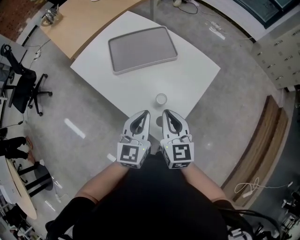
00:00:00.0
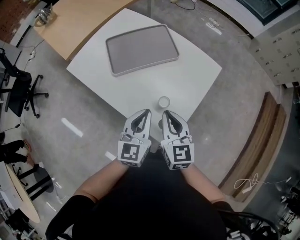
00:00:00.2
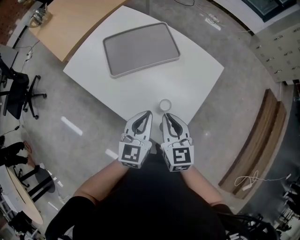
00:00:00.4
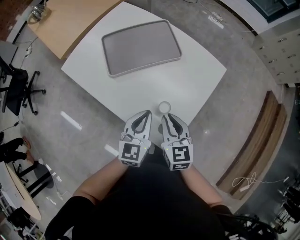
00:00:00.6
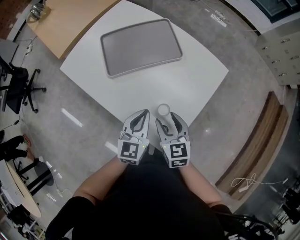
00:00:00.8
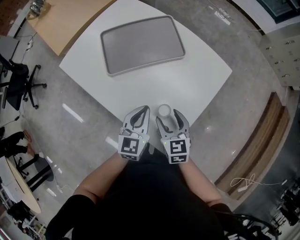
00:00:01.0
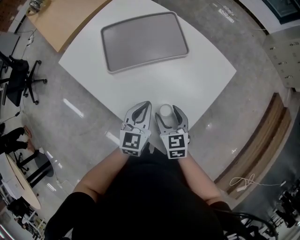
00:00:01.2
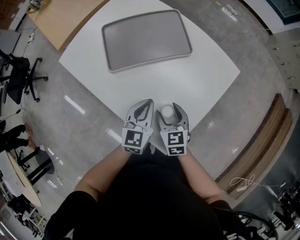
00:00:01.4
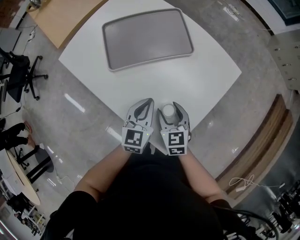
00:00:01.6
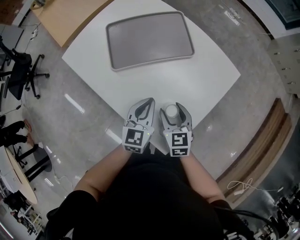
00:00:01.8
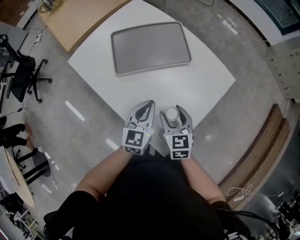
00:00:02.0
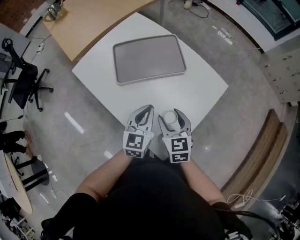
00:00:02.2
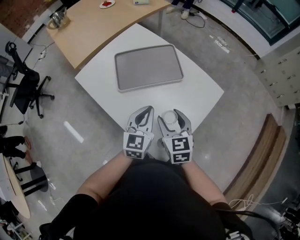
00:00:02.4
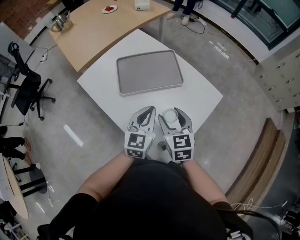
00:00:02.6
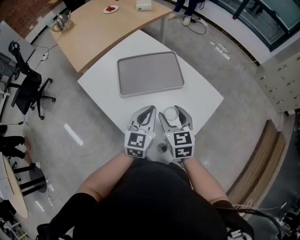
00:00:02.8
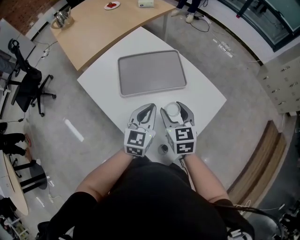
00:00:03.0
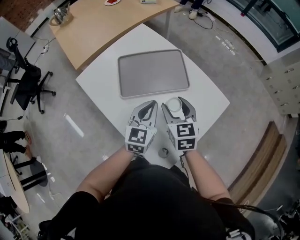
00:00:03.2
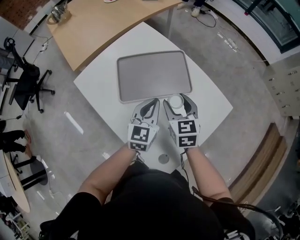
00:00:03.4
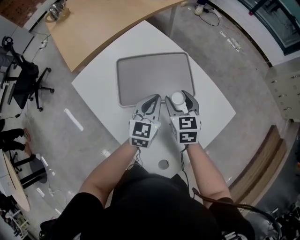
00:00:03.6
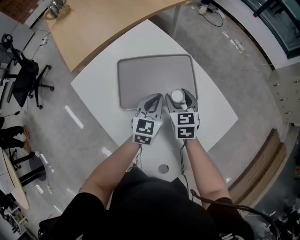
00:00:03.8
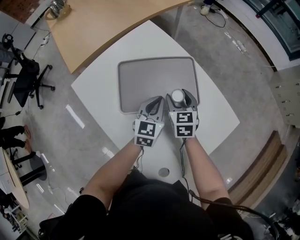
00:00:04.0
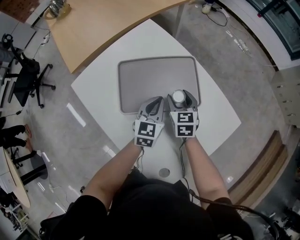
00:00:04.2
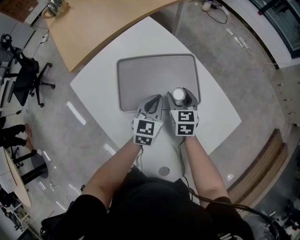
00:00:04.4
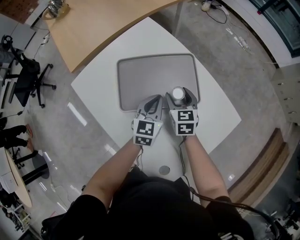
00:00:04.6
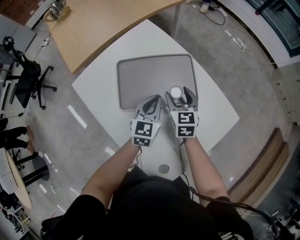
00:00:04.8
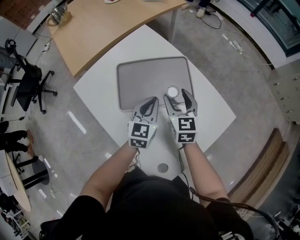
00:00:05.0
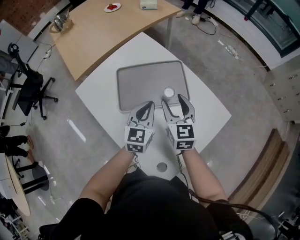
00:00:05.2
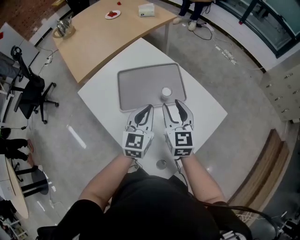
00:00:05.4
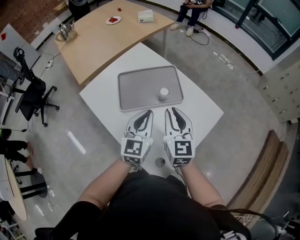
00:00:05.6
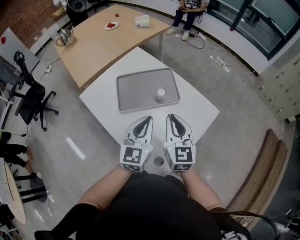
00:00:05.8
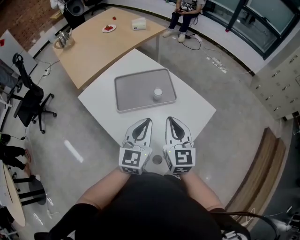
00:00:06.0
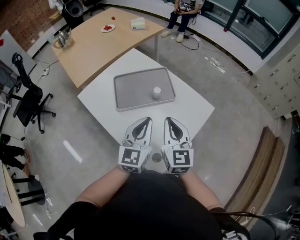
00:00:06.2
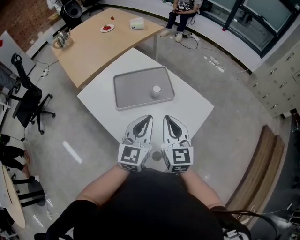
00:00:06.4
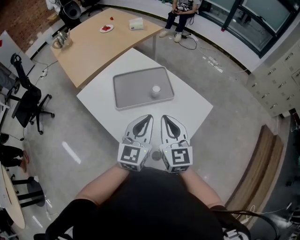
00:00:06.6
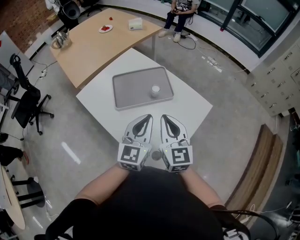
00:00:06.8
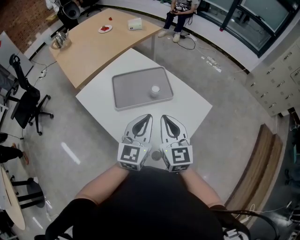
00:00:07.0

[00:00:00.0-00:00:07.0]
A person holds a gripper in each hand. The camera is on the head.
00:00:00.0 to 00:00:01.4: Both grippers move downward and forward, roughly 20 cm. The right gripper swivels about 20 degrees, and opens its fingers.
00:00:01.4 to 00:00:02.8: Both grippers move upward, roughly 15 cm.
00:00:02.8 to 00:00:04.2: The grippers both shift forward and downward by roughly 25 cm.
00:00:04.2 to 00:00:05.6: The grippers both shift upward and backward by about 25 cm. The right gripper turns by roughly 20 degrees, and closes up.
00:00:05.6 to 00:00:07.0: The left gripper shifts roughly 10 cm backward and upward, while the right gripper goes about 10 cm backward.

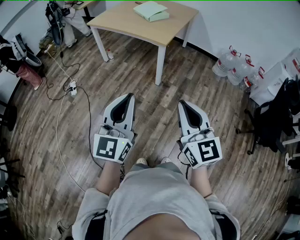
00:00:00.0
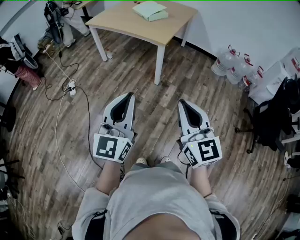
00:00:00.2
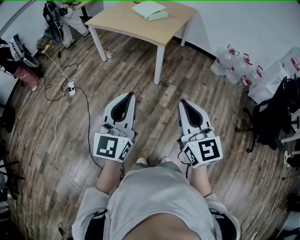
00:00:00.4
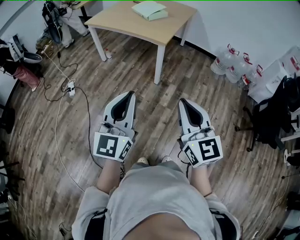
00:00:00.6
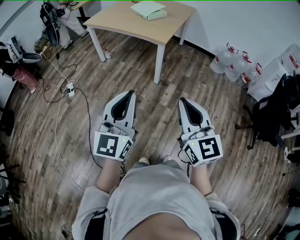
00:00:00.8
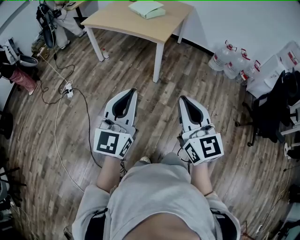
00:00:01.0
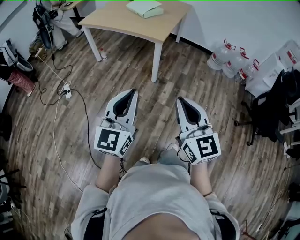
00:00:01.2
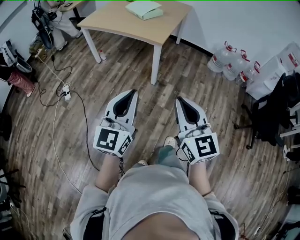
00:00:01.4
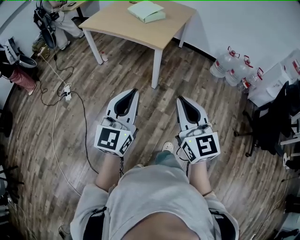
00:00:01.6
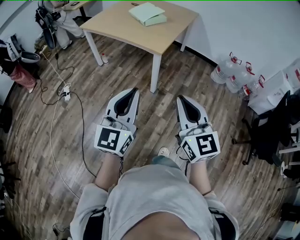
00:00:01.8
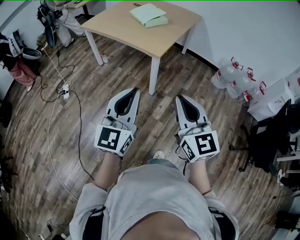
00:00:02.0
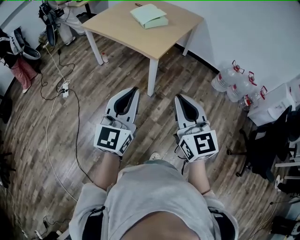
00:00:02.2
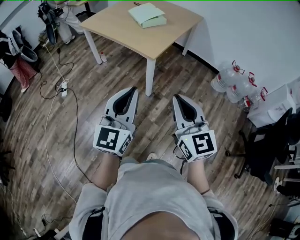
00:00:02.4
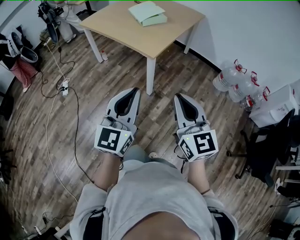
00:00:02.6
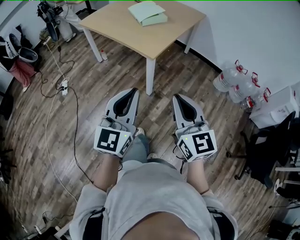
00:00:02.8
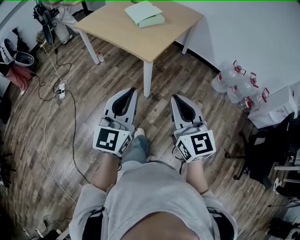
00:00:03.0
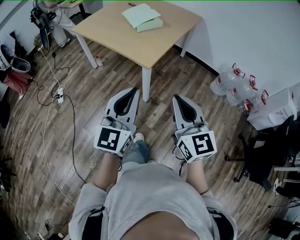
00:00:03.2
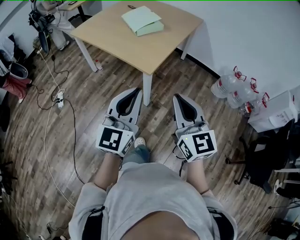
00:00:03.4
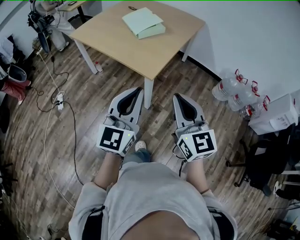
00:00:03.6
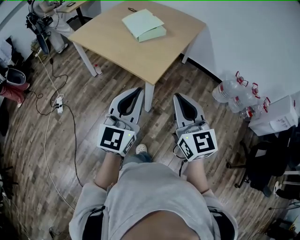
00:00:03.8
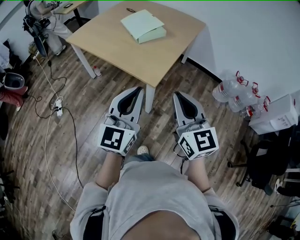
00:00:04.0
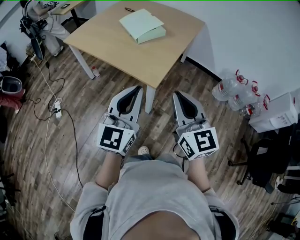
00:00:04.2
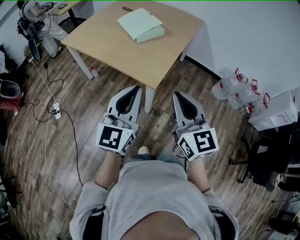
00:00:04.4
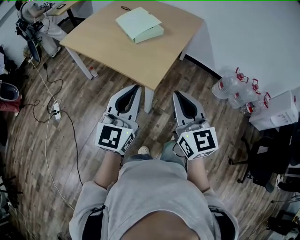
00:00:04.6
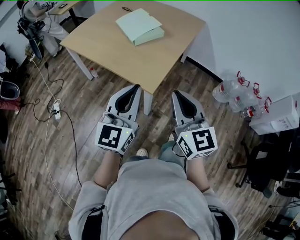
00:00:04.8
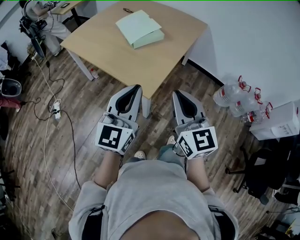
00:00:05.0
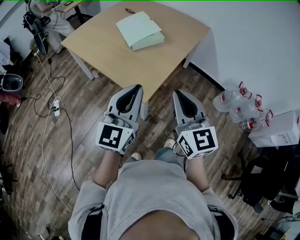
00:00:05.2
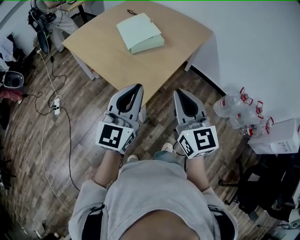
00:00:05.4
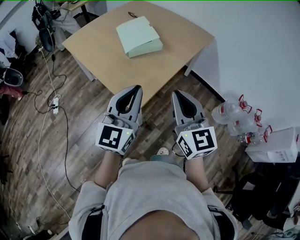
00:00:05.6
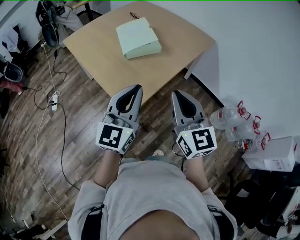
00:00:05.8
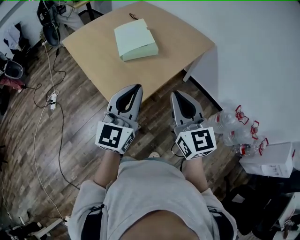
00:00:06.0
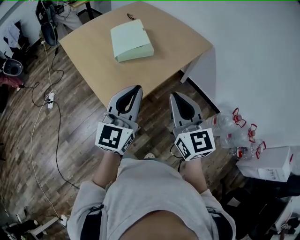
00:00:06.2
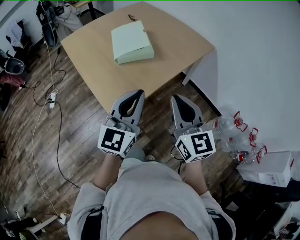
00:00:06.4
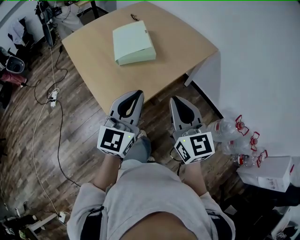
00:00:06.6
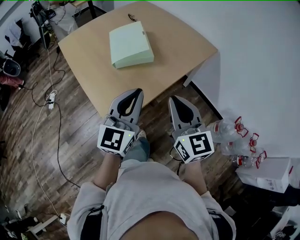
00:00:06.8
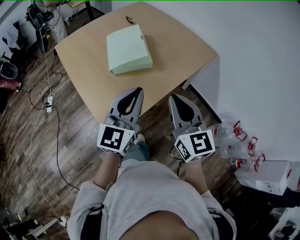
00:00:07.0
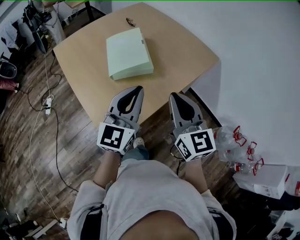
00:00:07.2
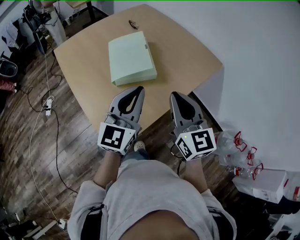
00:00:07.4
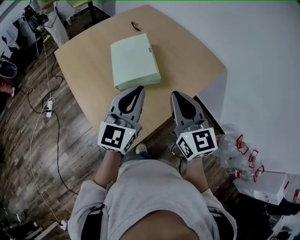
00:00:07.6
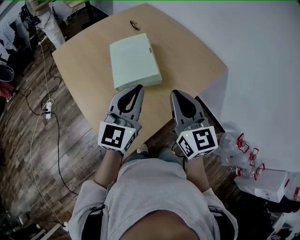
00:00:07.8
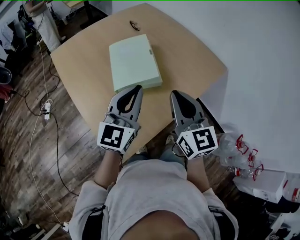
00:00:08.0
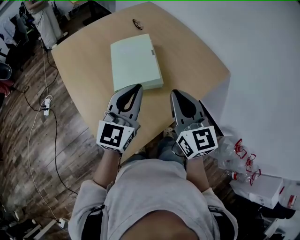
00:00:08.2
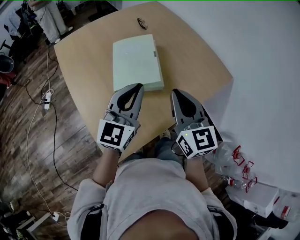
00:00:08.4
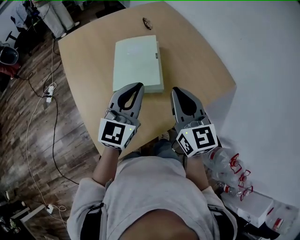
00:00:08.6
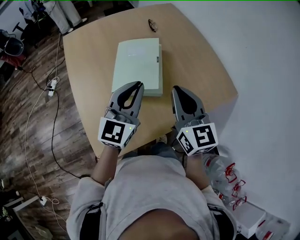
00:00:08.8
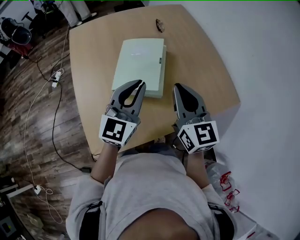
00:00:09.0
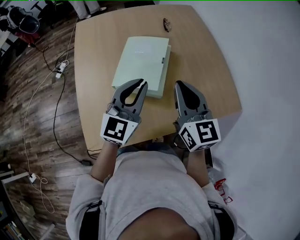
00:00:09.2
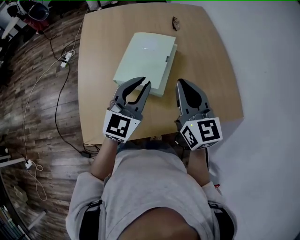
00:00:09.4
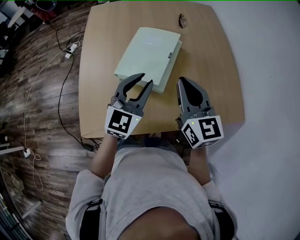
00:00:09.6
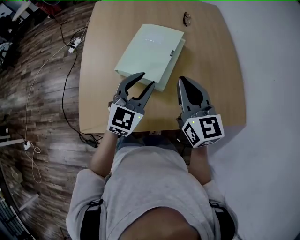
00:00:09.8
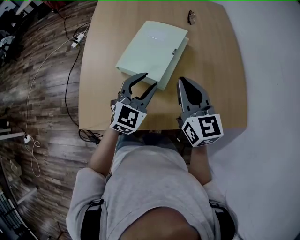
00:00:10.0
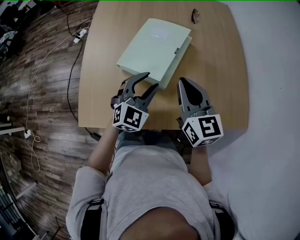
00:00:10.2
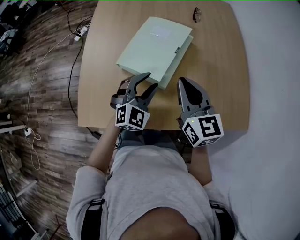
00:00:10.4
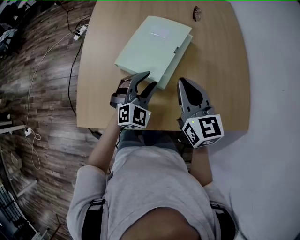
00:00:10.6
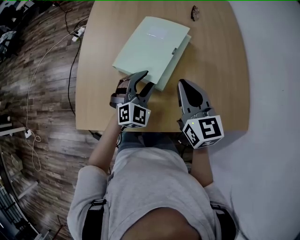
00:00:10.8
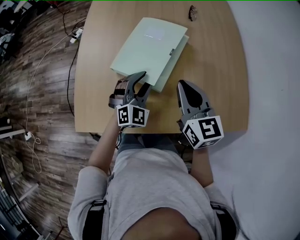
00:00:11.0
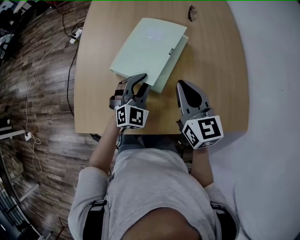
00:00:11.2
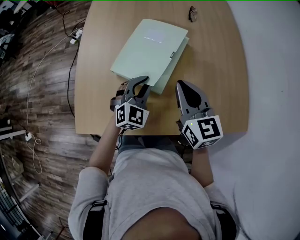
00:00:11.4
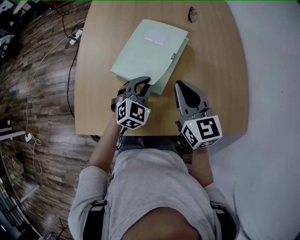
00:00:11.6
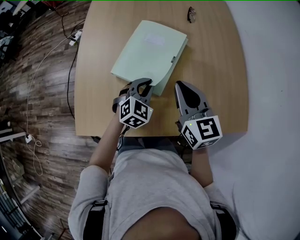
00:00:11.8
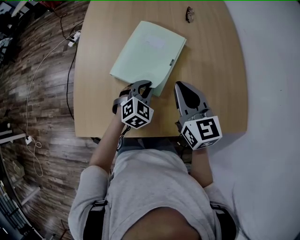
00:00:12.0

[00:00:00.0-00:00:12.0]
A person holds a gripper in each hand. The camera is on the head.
00:00:00.0 to 00:00:01.6: The grippers both shift forward by some 10 cm.
00:00:01.6 to 00:00:03.0: Both grippers move forward and to the right, about 25 cm.
00:00:03.0 to 00:00:04.4: The two grippers go about 20 cm forward.
00:00:04.4 to 00:00:06.0: Both grippers move forward and to the right, approximately 30 cm.
00:00:06.0 to 00:00:07.6: Both grippers move forward, roughly 25 cm.
00:00:07.6 to 00:00:09.0: The grippers both shift forward by approximately 15 cm.
00:00:09.0 to 00:00:10.4: The right gripper is displaced downward and forward by about 10 cm, and changes its angle by some 20 degrees. Meanwhile the left gripper moves downward, about 15 cm, turns by approximately 40 degrees, and opens its fingers.
00:00:10.4 to 00:00:12.0: The left gripper shifts about 5 cm downward, and closes its fingers.

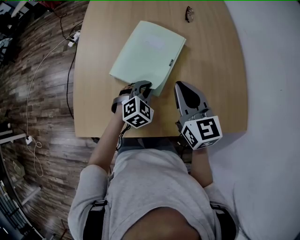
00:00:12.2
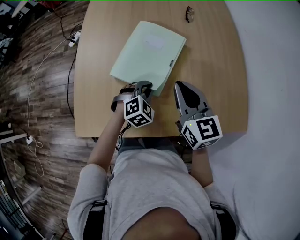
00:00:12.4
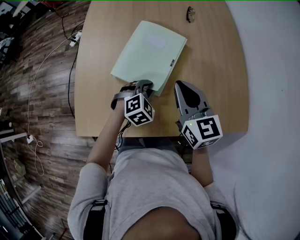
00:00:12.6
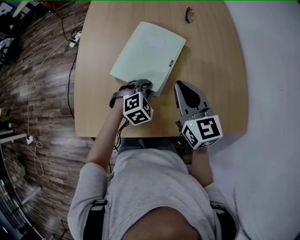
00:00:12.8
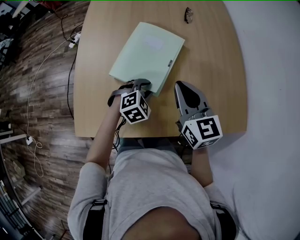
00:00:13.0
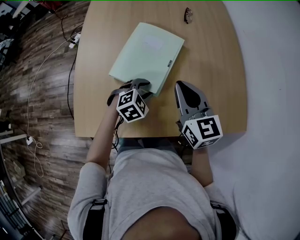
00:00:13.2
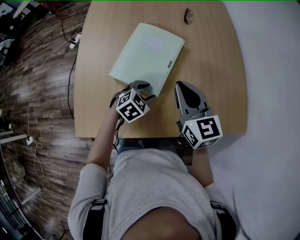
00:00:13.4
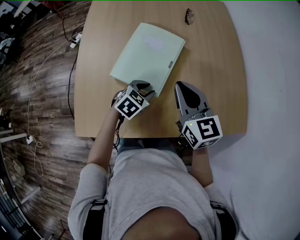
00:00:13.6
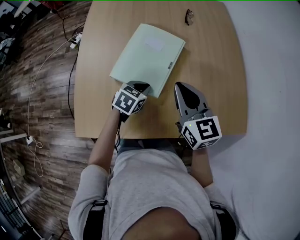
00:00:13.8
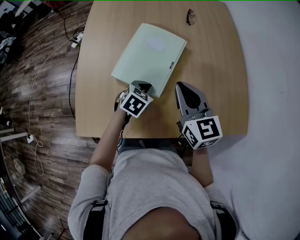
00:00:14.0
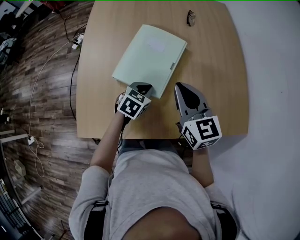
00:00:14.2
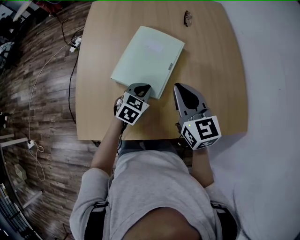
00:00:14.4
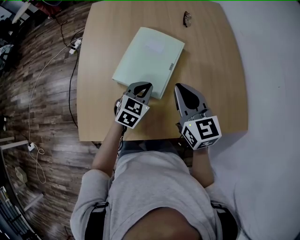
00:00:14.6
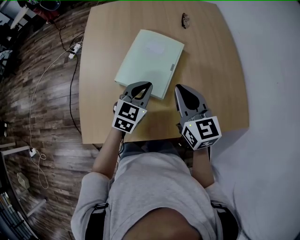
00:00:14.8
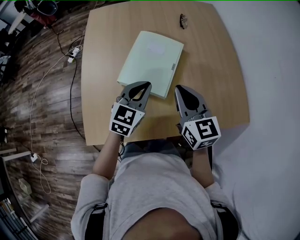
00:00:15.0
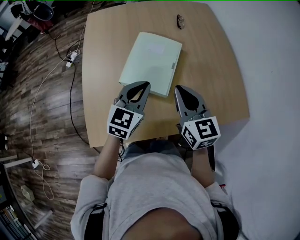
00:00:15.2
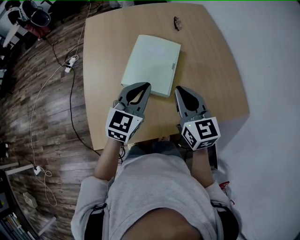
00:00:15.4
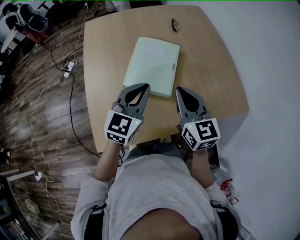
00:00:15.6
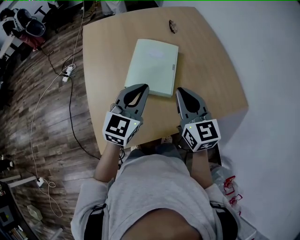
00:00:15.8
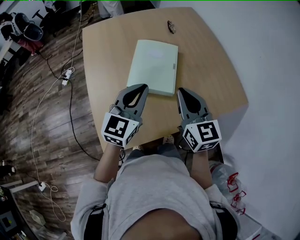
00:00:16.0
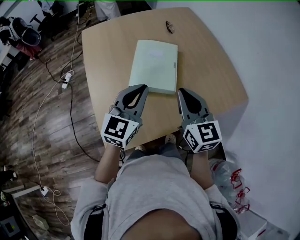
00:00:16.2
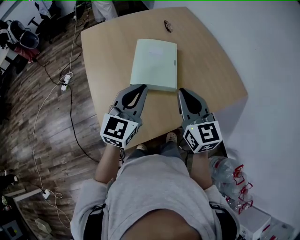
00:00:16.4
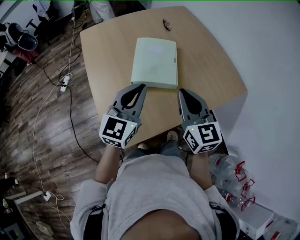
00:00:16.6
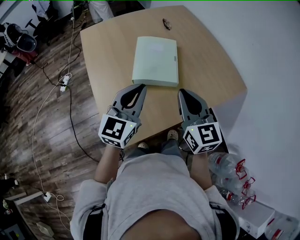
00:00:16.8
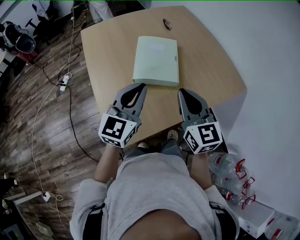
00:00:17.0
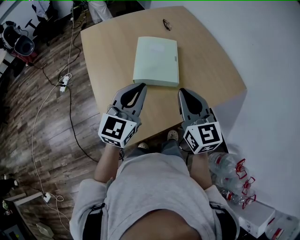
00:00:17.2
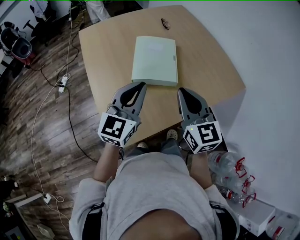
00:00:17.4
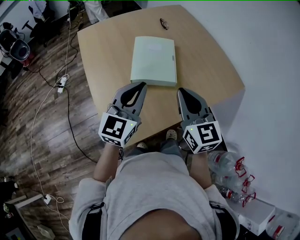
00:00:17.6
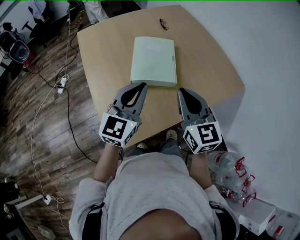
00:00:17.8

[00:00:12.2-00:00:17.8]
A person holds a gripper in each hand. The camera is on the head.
00:00:12.2 to 00:00:13.6: The left gripper swivels roughly 20 degrees, and opens up.
00:00:13.6 to 00:00:15.0: The left gripper goes approximately 15 cm upward, turns by about 30 degrees, and closes up.
00:00:15.0 to 00:00:16.4: The left gripper shifts approximately 15 cm upward, backward and to the left; the right gripper shifts about 15 cm backward, to the left and upward.
00:00:16.4 to 00:00:17.8: The grippers make only small movements.
